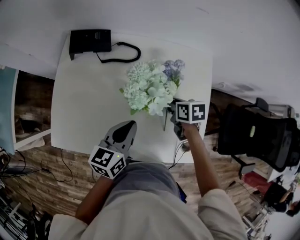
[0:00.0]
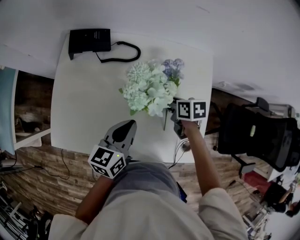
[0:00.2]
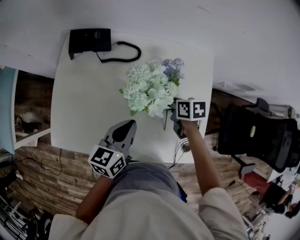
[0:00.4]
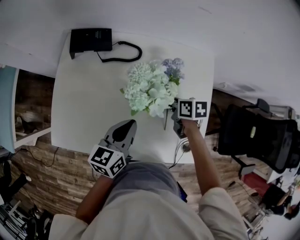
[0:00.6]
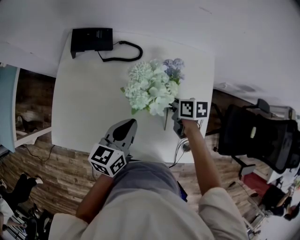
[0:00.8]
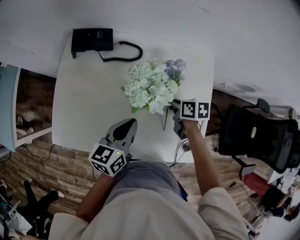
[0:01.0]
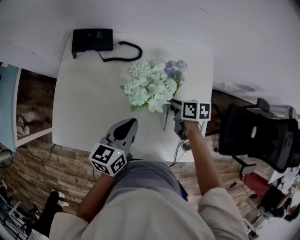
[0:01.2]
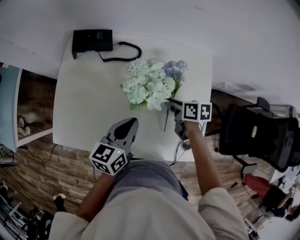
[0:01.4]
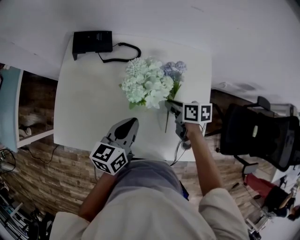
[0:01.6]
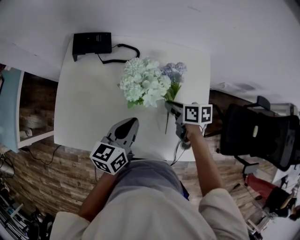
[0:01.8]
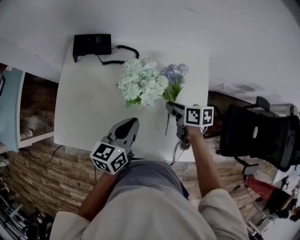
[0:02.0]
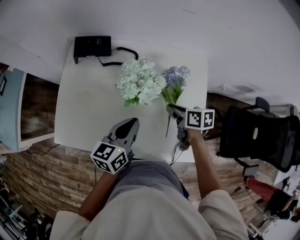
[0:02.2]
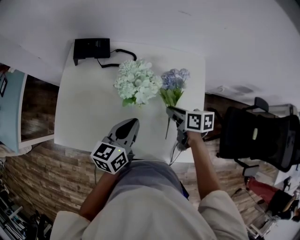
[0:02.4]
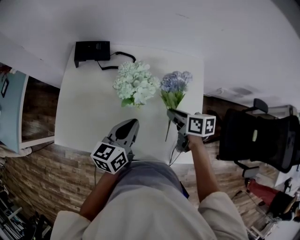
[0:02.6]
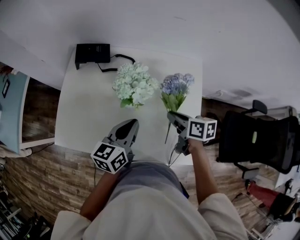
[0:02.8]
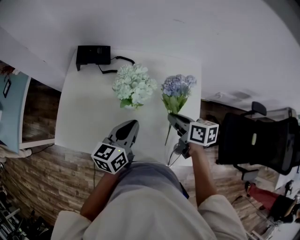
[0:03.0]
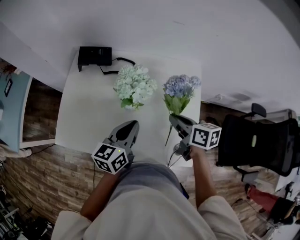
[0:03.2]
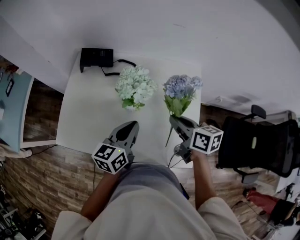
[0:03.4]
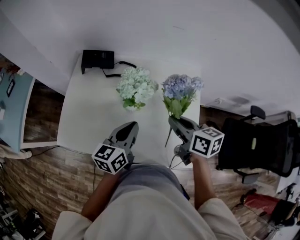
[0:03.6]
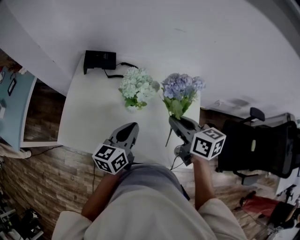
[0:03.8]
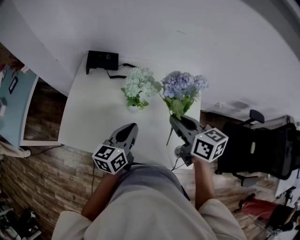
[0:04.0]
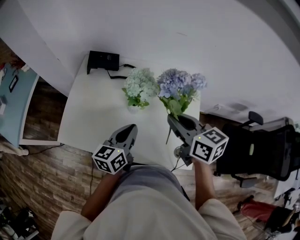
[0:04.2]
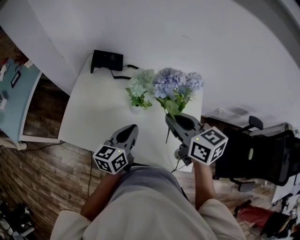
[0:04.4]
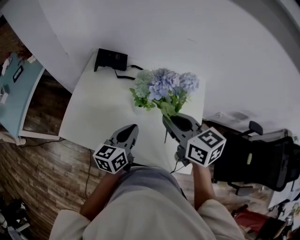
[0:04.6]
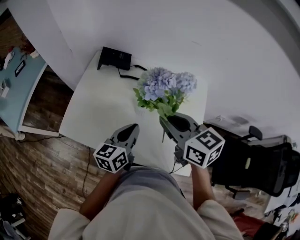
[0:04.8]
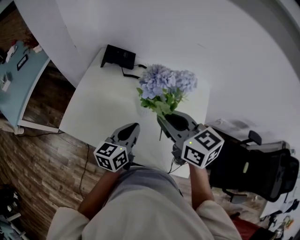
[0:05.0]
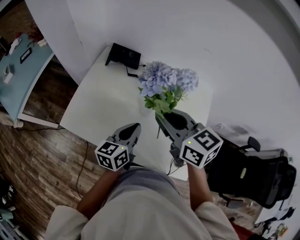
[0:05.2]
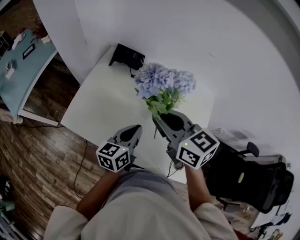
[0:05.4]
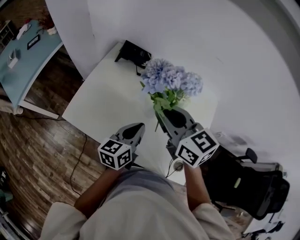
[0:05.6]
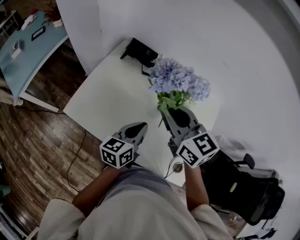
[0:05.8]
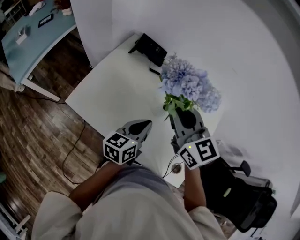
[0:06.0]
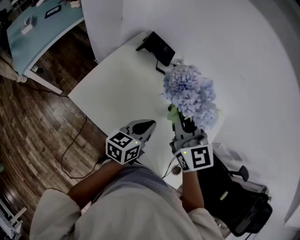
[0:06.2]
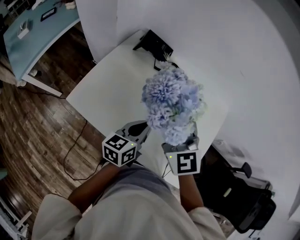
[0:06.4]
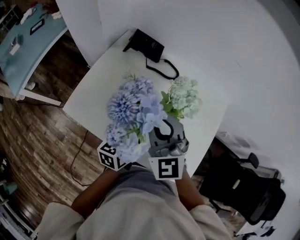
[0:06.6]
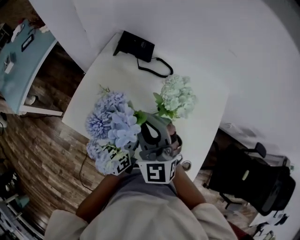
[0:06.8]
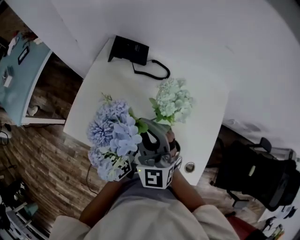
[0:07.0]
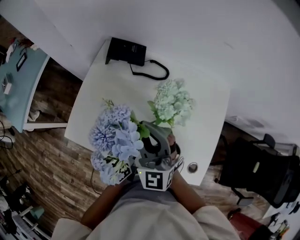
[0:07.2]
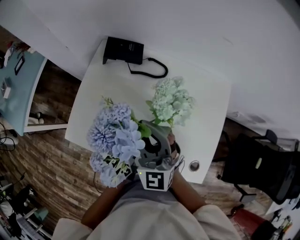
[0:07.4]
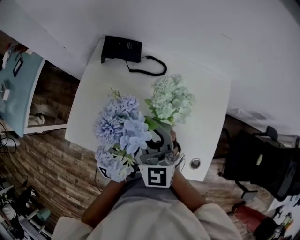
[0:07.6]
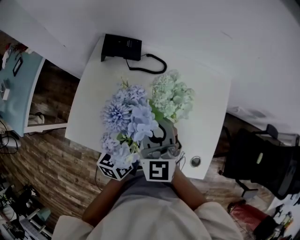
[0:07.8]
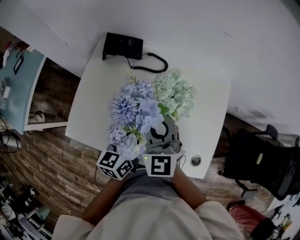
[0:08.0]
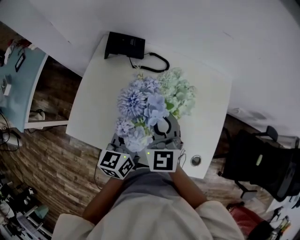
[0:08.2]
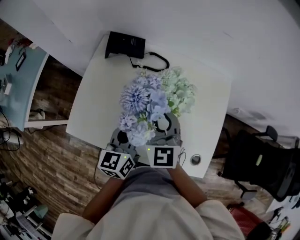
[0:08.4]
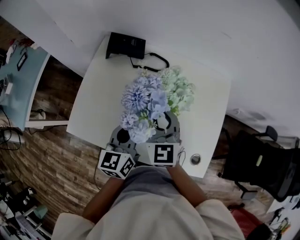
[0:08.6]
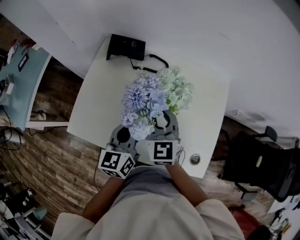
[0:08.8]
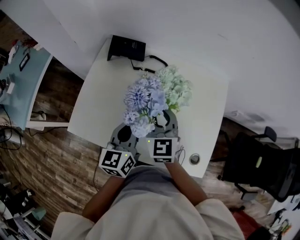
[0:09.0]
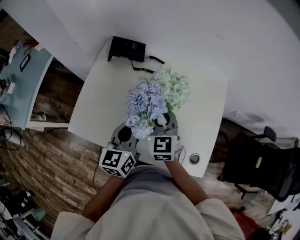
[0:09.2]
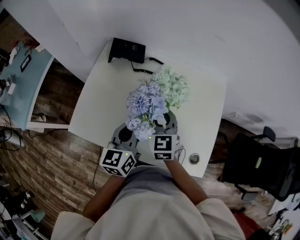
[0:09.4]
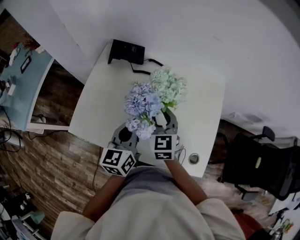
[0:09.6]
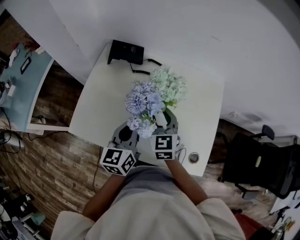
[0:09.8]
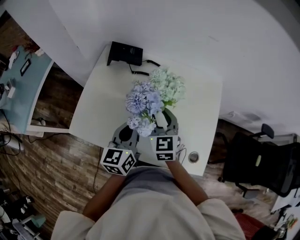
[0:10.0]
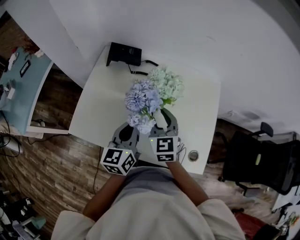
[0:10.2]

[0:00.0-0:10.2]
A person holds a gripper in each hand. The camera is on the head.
0:00.0 to 0:01.4: The right gripper closes its fingers.
0:01.4 to 0:03.0: The left gripper ends up some 5 cm from where it was. The right gripper heads upward and backward, covering some 10 cm.
0:03.0 to 0:04.4: The right gripper is displaced upward and to the left by about 15 cm, and swivels roughly 30 degrees.
0:04.4 to 0:05.8: The right gripper travels to the left and forward by approximately 15 cm, and swivels roughly 20 degrees.
0:05.8 to 0:07.2: The right gripper heads downward, covering roughly 5 cm, and turns by some 40 degrees.
0:07.2 to 0:08.8: The right gripper is displaced downward by approximately 5 cm, and changes its angle by about 30 degrees.
0:08.8 to 0:10.2: The right gripper opens.

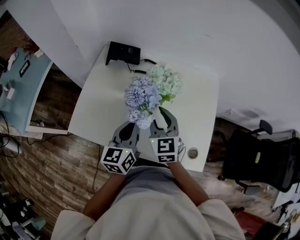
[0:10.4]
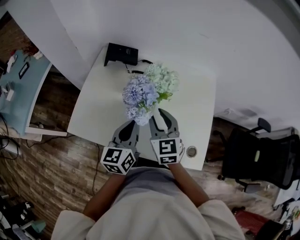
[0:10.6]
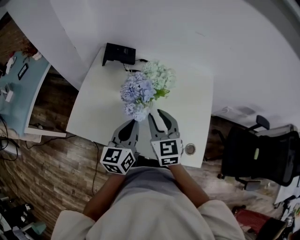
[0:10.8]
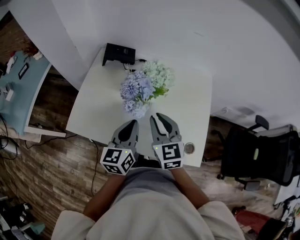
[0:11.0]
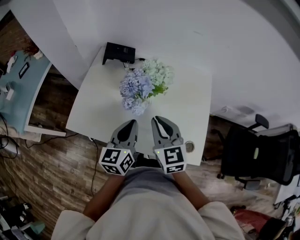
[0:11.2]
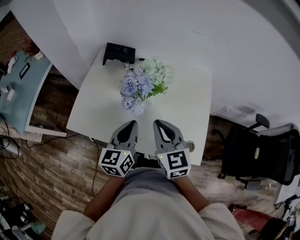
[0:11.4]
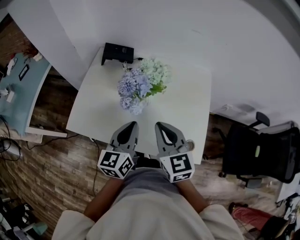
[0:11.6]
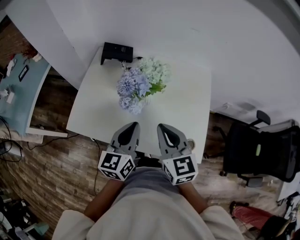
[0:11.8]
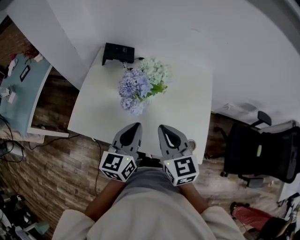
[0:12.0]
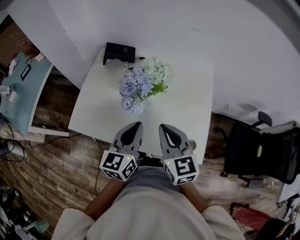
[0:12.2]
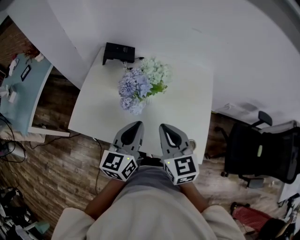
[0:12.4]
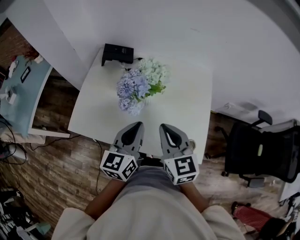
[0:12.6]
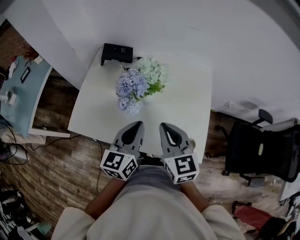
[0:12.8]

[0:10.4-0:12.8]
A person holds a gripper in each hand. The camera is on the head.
0:10.4 to 0:11.6: The right gripper is displaced backward and upward by roughly 10 cm, and closes, while the left gripper goes approximately 5 cm backward.
0:11.6 to 0:12.8: There are only small adjustments of the grippers.

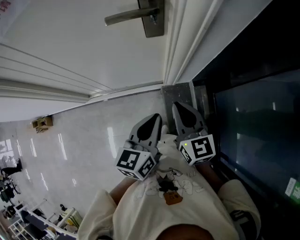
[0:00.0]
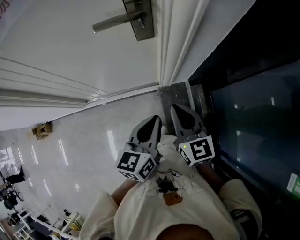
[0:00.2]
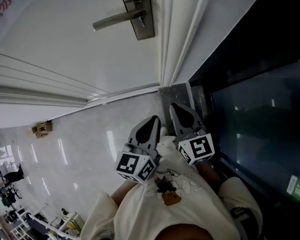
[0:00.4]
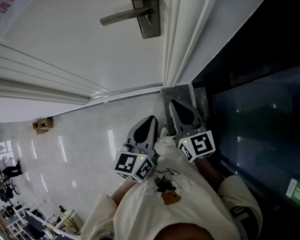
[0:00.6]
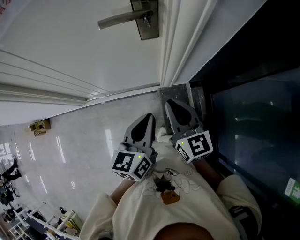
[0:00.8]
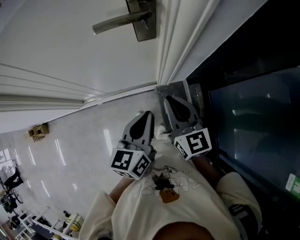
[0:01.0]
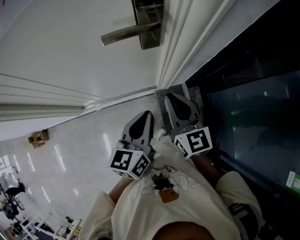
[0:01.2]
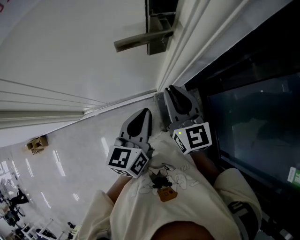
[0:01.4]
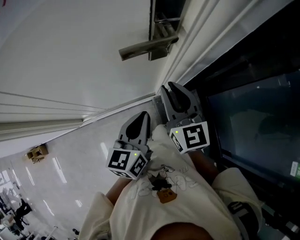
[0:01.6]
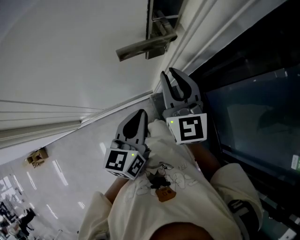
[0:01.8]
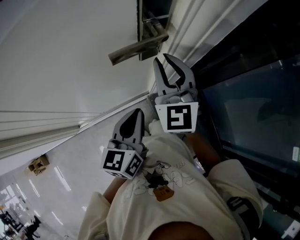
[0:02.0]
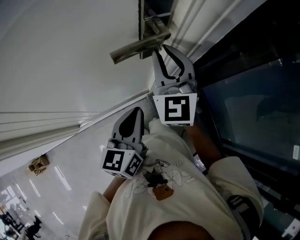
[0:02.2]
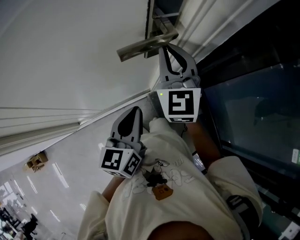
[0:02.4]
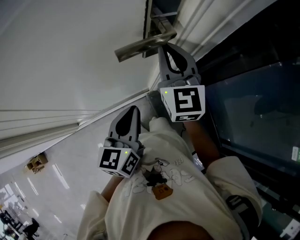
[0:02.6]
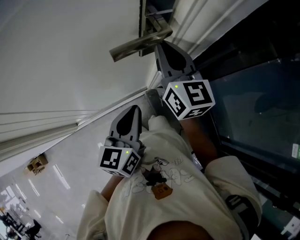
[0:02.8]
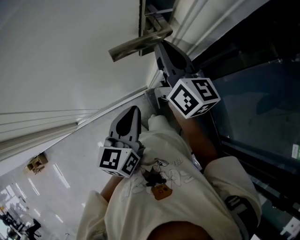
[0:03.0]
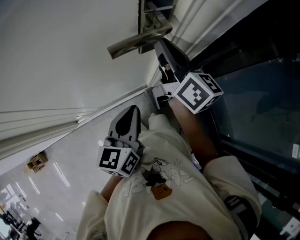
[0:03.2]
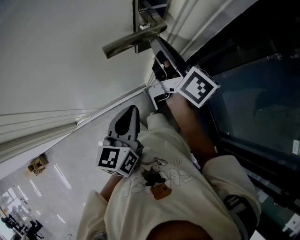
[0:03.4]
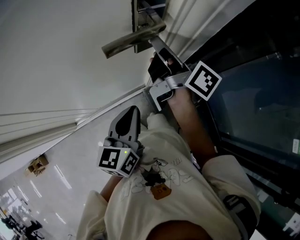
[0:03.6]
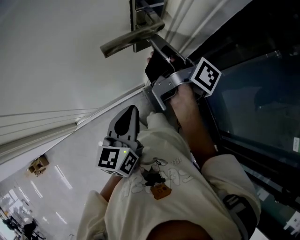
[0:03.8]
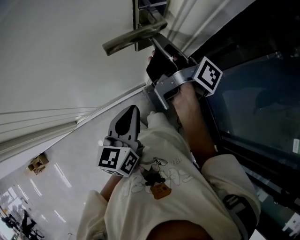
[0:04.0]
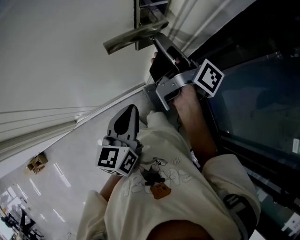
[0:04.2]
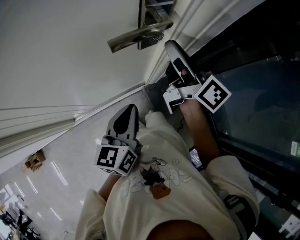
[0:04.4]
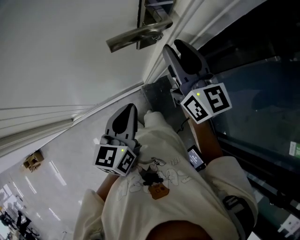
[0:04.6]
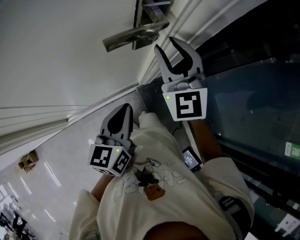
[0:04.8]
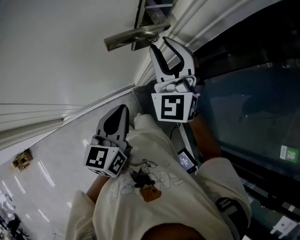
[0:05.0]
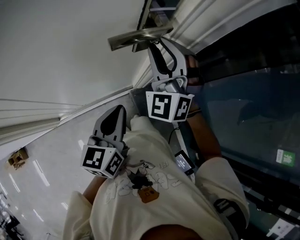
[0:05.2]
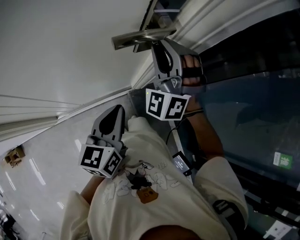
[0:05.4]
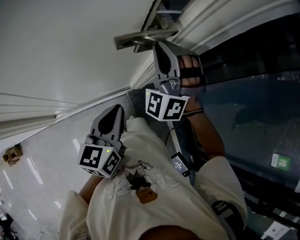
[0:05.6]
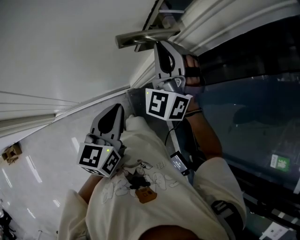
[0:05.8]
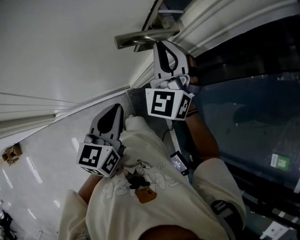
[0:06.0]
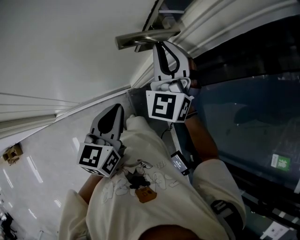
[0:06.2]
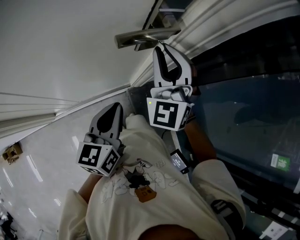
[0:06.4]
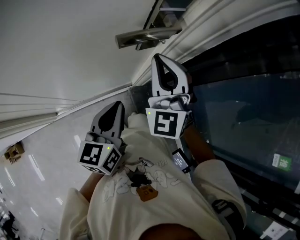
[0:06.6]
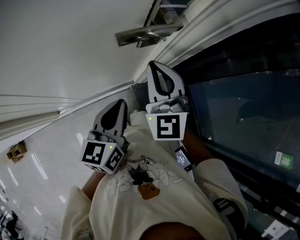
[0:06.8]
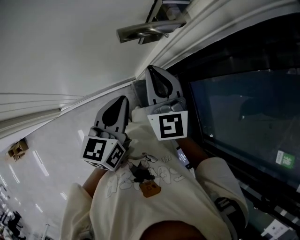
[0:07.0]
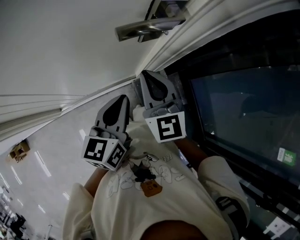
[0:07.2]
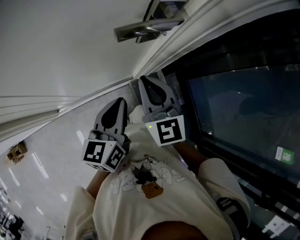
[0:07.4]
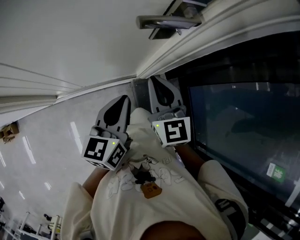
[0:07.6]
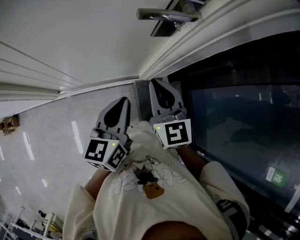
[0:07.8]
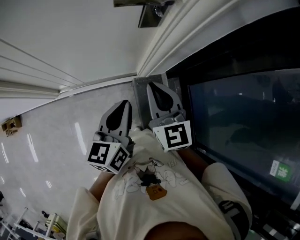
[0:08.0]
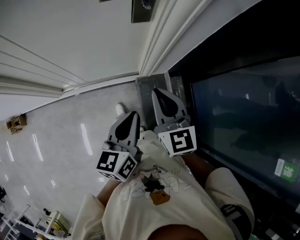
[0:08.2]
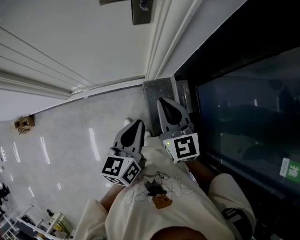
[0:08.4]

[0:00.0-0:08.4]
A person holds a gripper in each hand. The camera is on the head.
0:00.0 to 0:01.4: Both grippers travel together forward and to the left, about 10 cm.
0:01.4 to 0:02.8: The right gripper travels forward and upward by some 15 cm, while the left gripper ends up some 5 cm from where it was.
0:02.8 to 0:04.2: The right gripper rolls clockwise, seen from behind, by roughly 70 degrees, and opens up.
0:04.2 to 0:05.6: The right gripper rotates around the line of its fingers by about 150 degrees, counterclockwise from behind, and closes its fingers.
0:05.6 to 0:07.0: The right gripper travels backward and downward by approximately 10 cm, and rolls clockwise, seen from behind, by about 60 degrees.
0:07.0 to 0:08.4: The grippers both shift backward and to the right by roughly 25 cm.

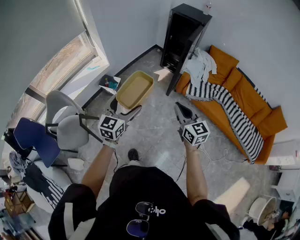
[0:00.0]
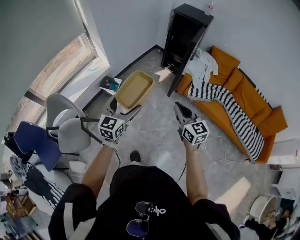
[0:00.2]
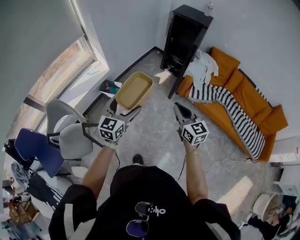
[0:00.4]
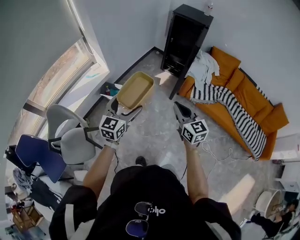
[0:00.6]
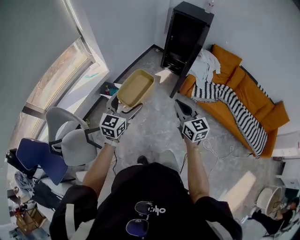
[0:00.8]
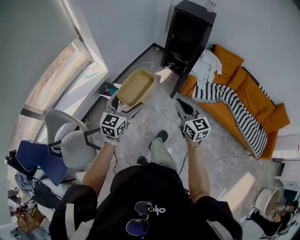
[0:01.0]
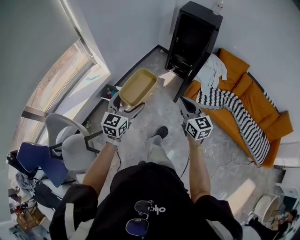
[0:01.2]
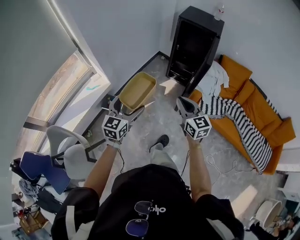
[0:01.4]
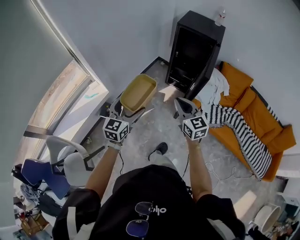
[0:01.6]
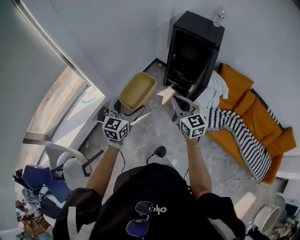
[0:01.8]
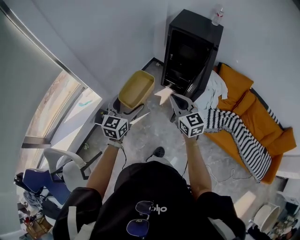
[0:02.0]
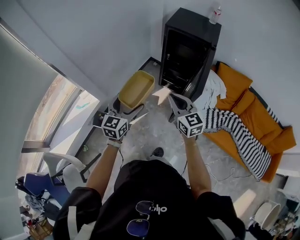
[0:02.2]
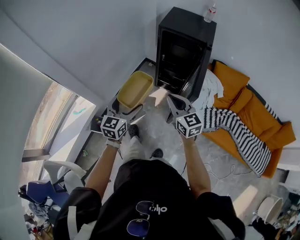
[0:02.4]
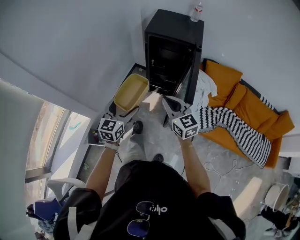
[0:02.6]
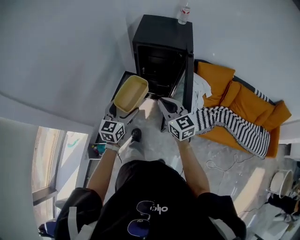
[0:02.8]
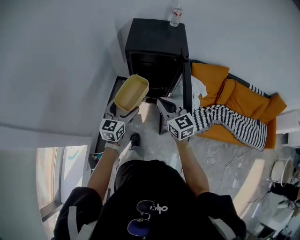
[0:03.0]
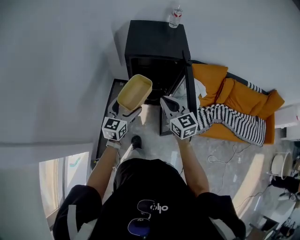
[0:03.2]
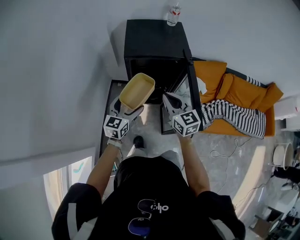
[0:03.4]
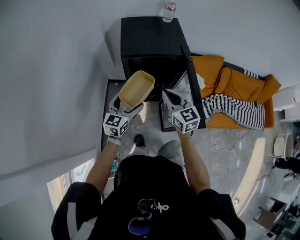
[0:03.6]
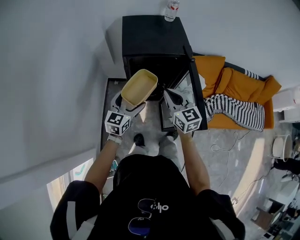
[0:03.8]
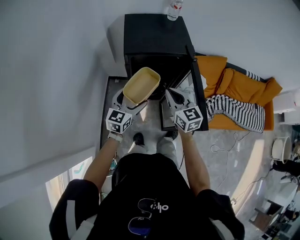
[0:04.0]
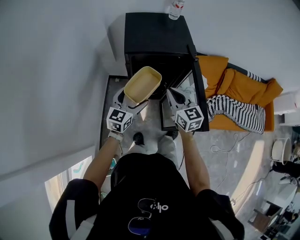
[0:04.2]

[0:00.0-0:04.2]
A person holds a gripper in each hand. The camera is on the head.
0:00.0 to 0:01.4: Both grippers move forward, roughly 30 cm.
0:01.4 to 0:02.8: Both grippers move forward, roughly 40 cm.
0:02.8 to 0:04.2: Both grippers move forward, some 20 cm. The right gripper turns by approximately 20 degrees; the left gripper changes its angle by roughly 20 degrees.
